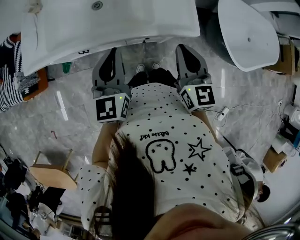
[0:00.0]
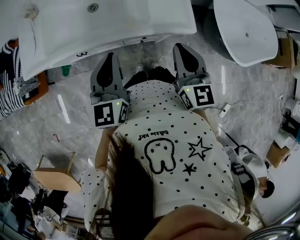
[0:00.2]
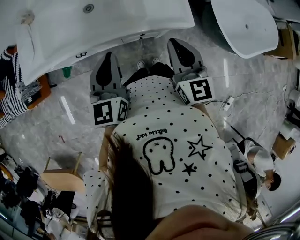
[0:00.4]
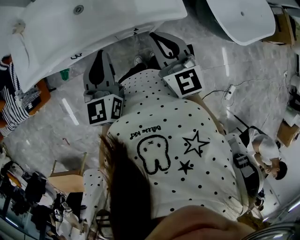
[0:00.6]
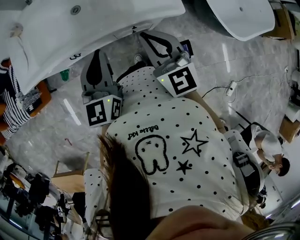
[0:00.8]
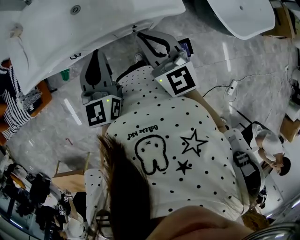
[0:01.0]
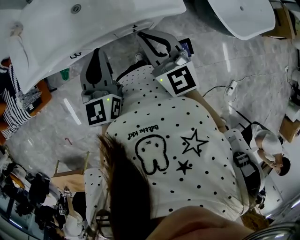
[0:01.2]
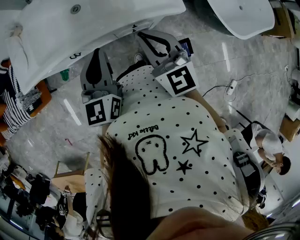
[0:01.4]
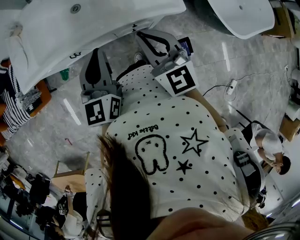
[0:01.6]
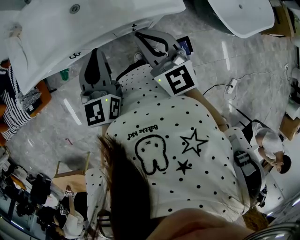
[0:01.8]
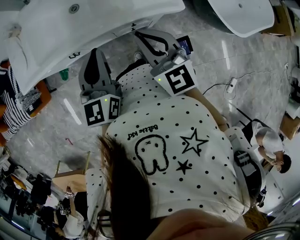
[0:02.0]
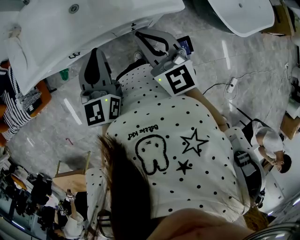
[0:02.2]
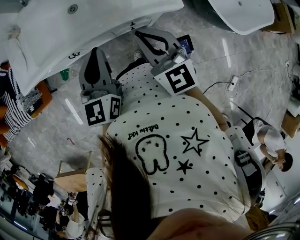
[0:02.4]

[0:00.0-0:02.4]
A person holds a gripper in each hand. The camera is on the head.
0:00.0 to 0:01.2: The right gripper shifts some 5 cm to the left.
0:01.2 to 0:02.4: Neither gripper changes place.

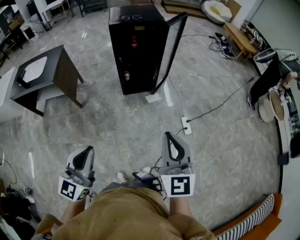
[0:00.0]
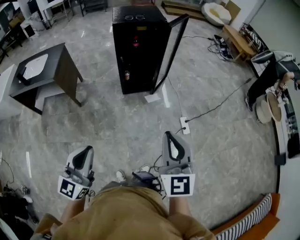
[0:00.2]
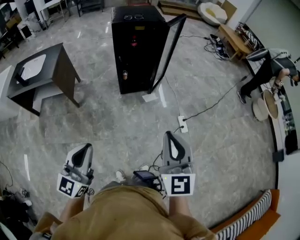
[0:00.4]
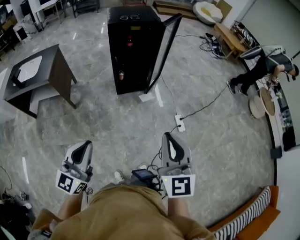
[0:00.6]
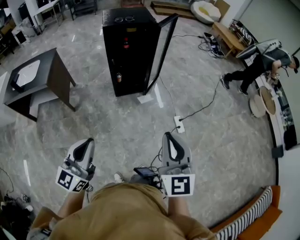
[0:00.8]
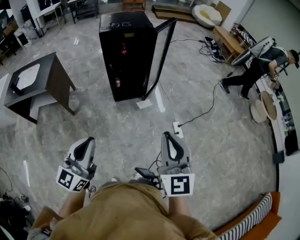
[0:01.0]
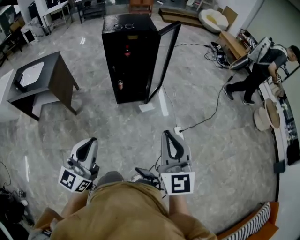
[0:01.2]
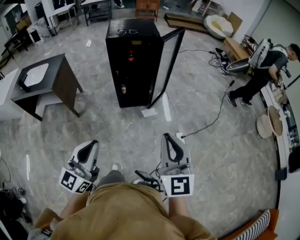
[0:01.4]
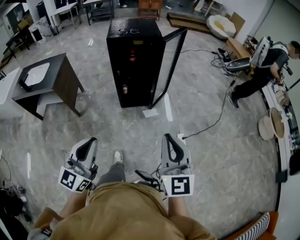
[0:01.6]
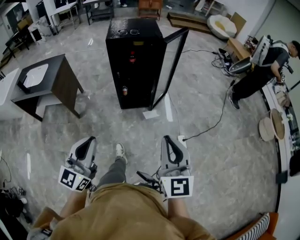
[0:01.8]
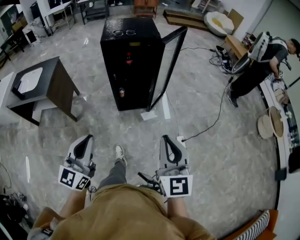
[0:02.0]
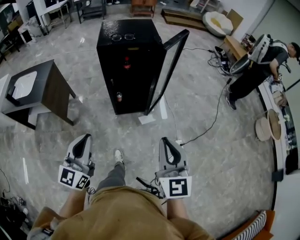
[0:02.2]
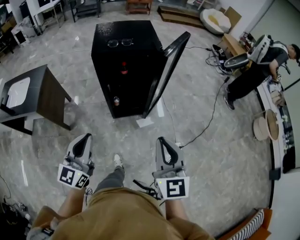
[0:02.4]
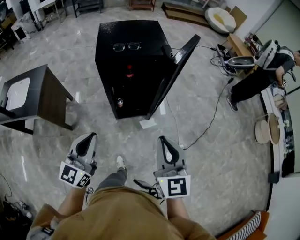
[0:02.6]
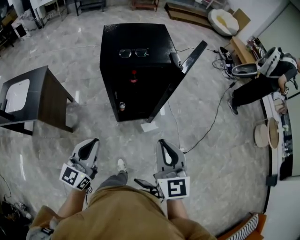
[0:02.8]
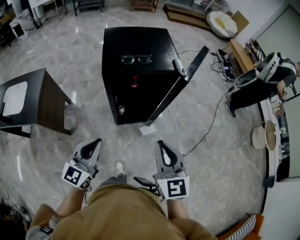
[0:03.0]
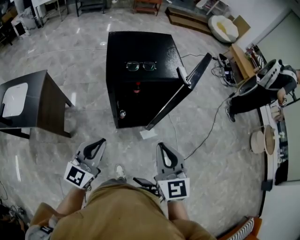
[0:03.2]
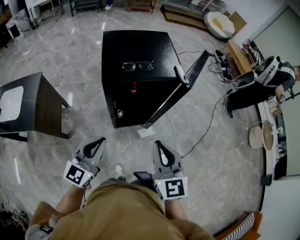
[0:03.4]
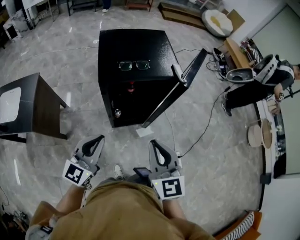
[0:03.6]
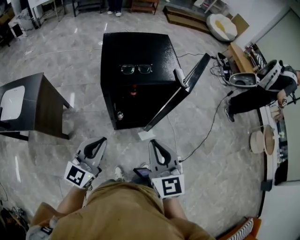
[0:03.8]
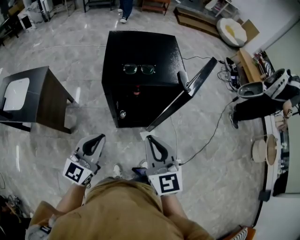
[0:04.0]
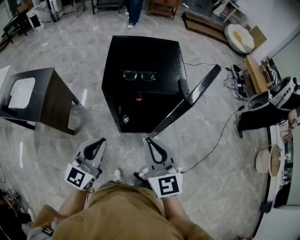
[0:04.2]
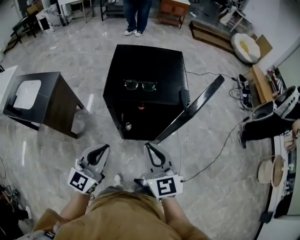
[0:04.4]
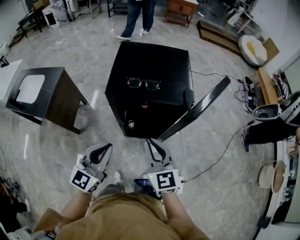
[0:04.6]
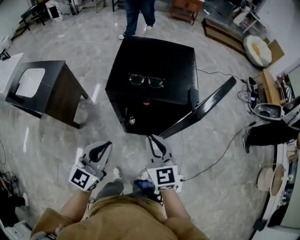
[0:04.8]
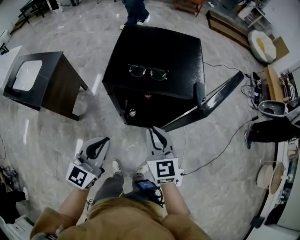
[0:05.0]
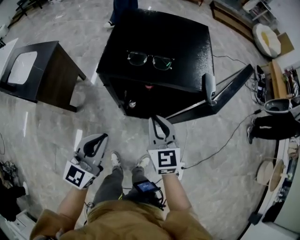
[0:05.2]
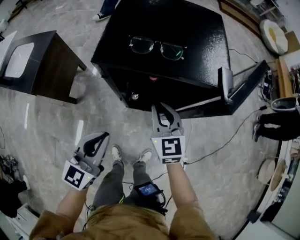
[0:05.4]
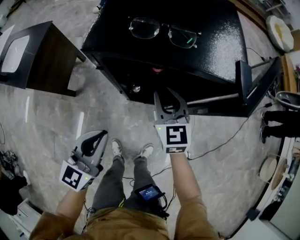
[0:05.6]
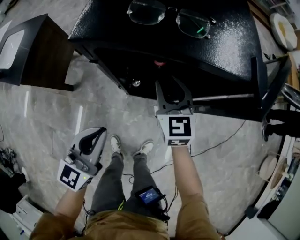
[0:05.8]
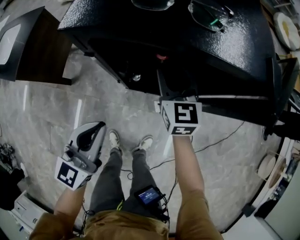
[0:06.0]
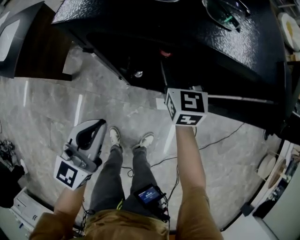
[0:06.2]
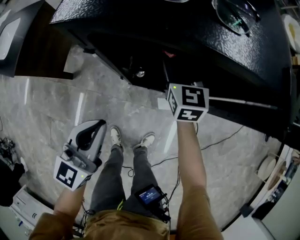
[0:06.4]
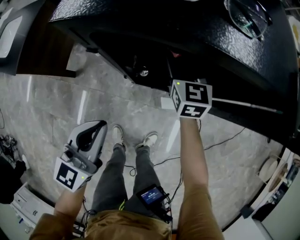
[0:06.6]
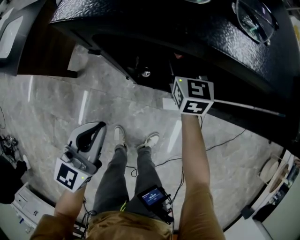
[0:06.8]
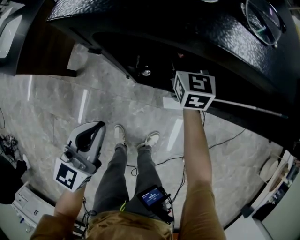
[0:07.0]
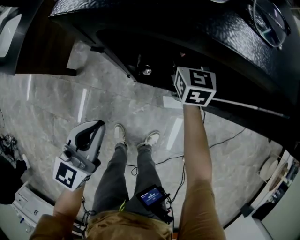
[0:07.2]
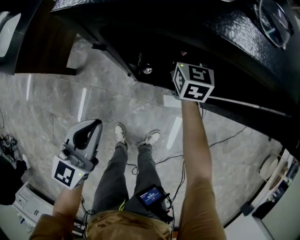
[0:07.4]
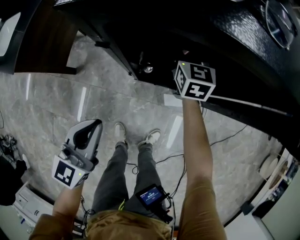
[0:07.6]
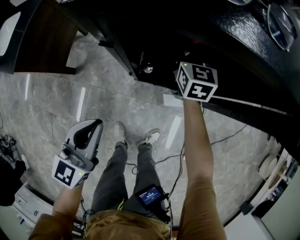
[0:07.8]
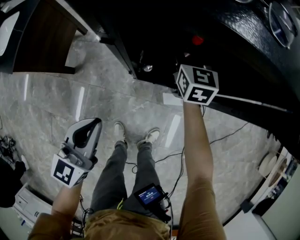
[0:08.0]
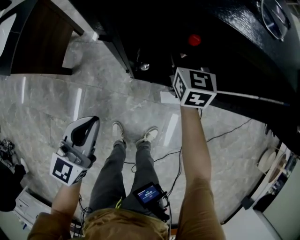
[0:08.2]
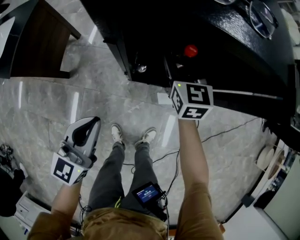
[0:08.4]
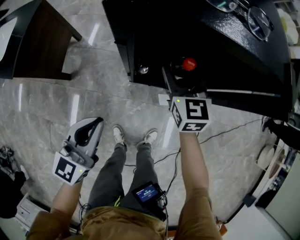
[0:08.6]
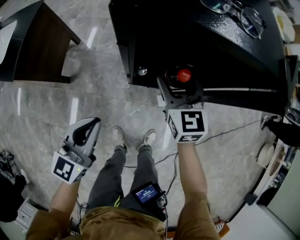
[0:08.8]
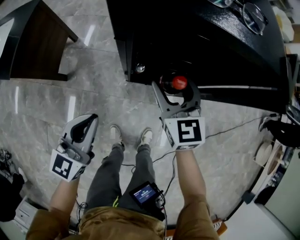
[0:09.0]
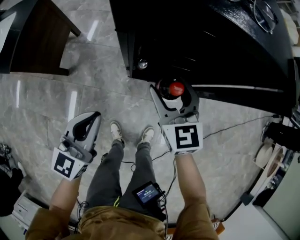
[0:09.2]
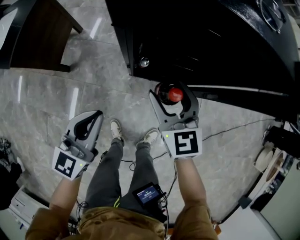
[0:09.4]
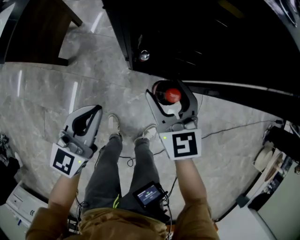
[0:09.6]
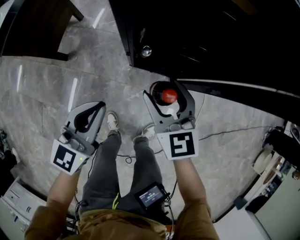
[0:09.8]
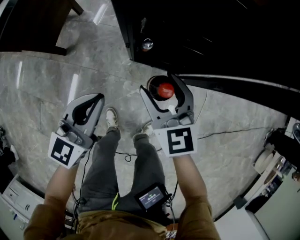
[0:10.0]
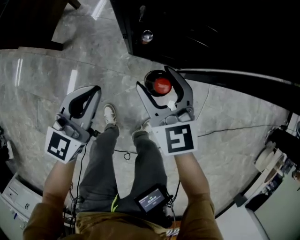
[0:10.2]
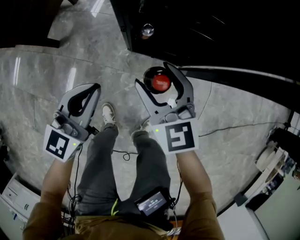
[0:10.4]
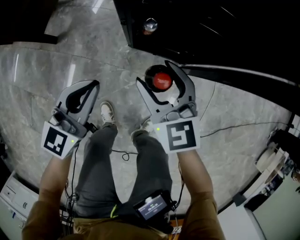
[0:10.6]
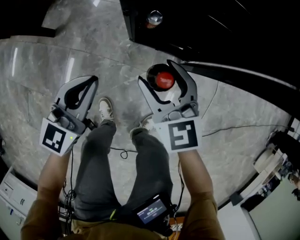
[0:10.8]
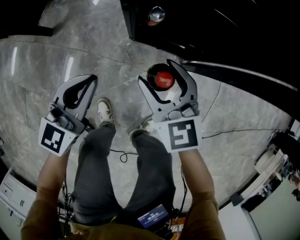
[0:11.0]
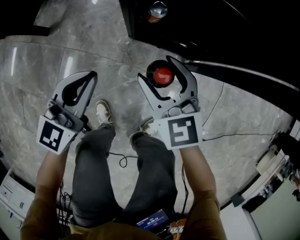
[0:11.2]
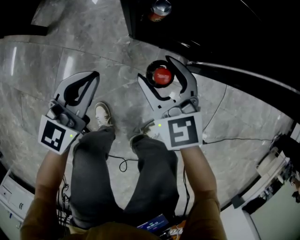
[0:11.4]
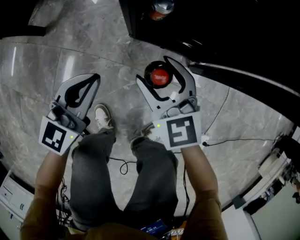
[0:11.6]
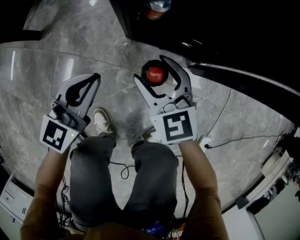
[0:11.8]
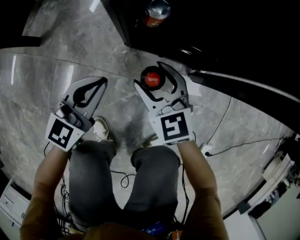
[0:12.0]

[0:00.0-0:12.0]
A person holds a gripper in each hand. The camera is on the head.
0:00.0 to 0:01.6: The two grippers go some 10 cm forward and to the right.
0:01.6 to 0:03.0: The pair of grippers is taken forward and to the left, about 50 cm.
0:03.0 to 0:04.4: The left gripper heads forward and to the right, covering about 10 cm, while the right gripper is displaced forward by approximately 15 cm.
0:04.4 to 0:06.0: The left gripper is displaced downward by approximately 25 cm; the right gripper heads downward and forward, covering approximately 40 cm, and opens its fingers.
0:06.0 to 0:07.6: The left gripper moves to the left and downward, approximately 10 cm. The right gripper shifts about 15 cm forward and downward, and opens.
0:07.6 to 0:09.0: The right gripper heads backward and upward, covering some 20 cm.
0:09.0 to 0:10.4: The two grippers go approximately 20 cm downward.
0:10.4 to 0:12.0: Both grippers move downward, about 35 cm.

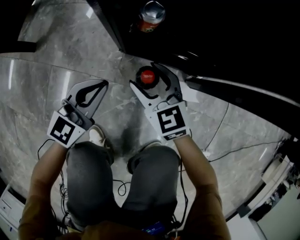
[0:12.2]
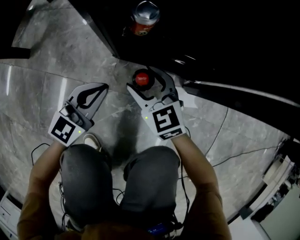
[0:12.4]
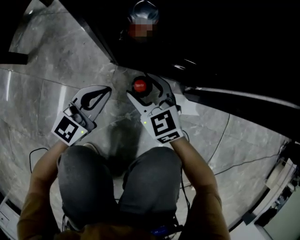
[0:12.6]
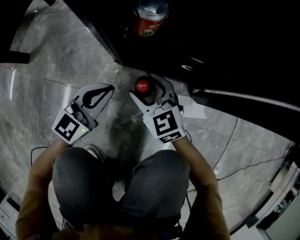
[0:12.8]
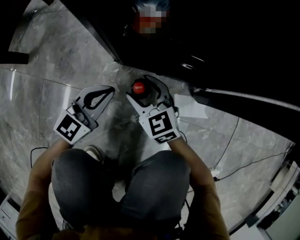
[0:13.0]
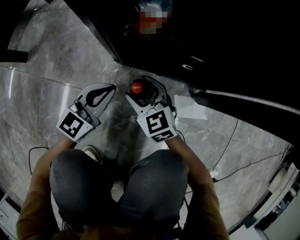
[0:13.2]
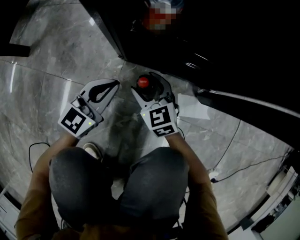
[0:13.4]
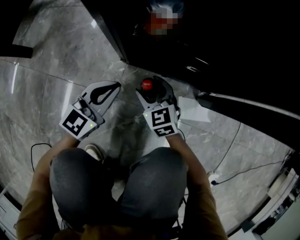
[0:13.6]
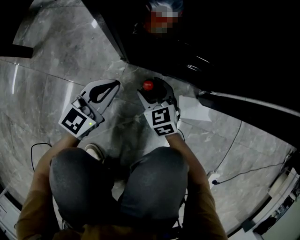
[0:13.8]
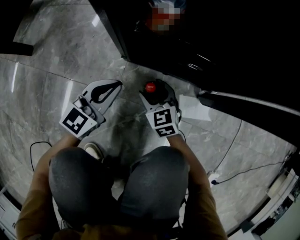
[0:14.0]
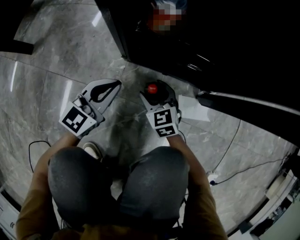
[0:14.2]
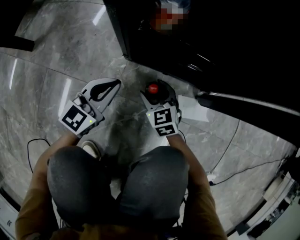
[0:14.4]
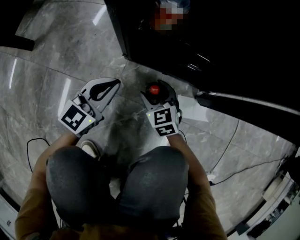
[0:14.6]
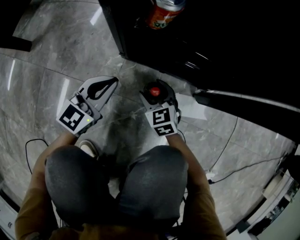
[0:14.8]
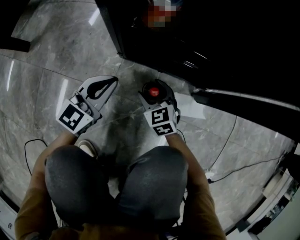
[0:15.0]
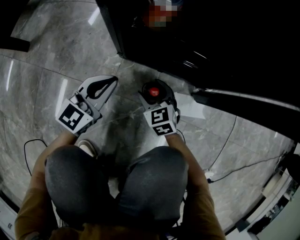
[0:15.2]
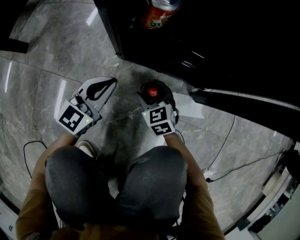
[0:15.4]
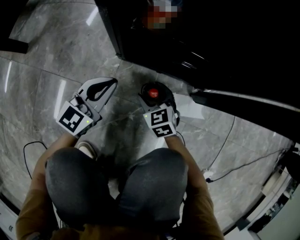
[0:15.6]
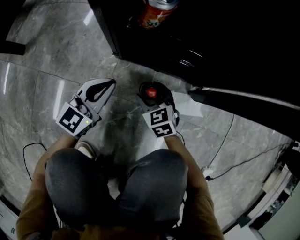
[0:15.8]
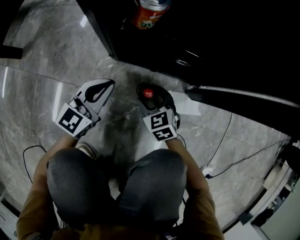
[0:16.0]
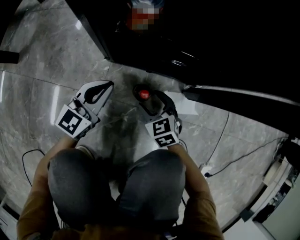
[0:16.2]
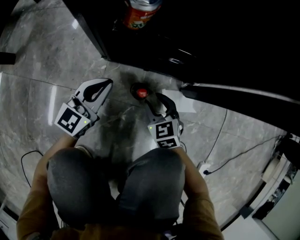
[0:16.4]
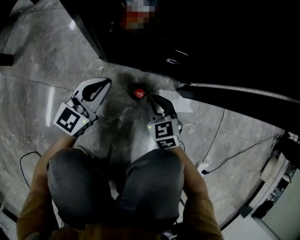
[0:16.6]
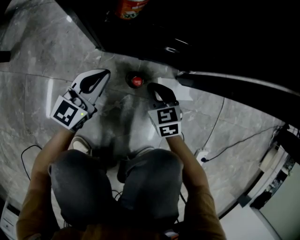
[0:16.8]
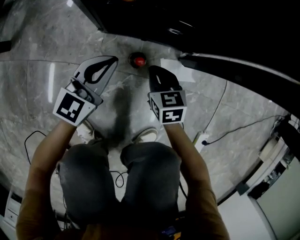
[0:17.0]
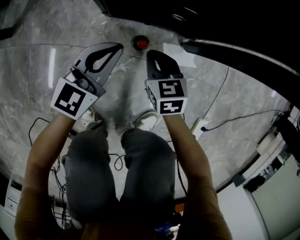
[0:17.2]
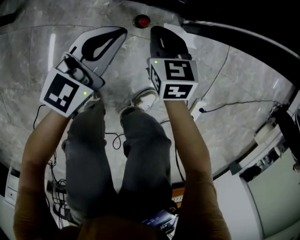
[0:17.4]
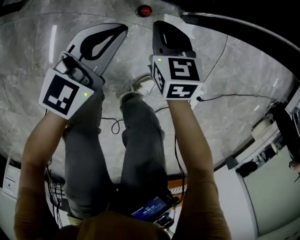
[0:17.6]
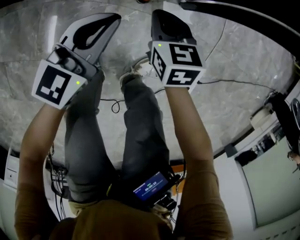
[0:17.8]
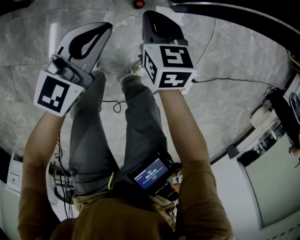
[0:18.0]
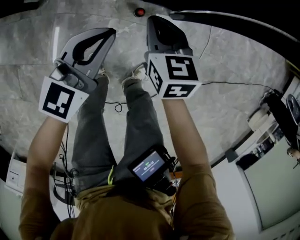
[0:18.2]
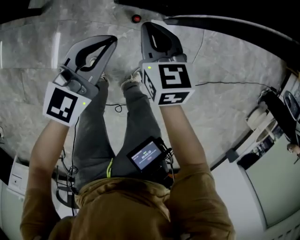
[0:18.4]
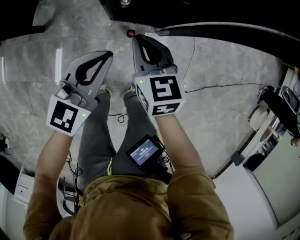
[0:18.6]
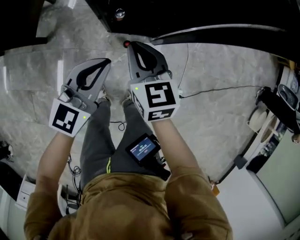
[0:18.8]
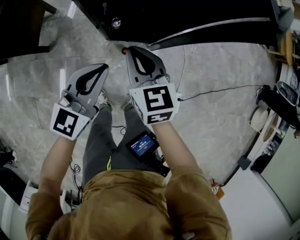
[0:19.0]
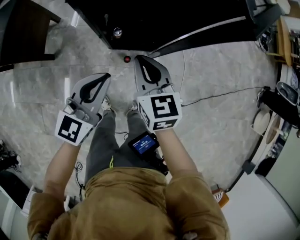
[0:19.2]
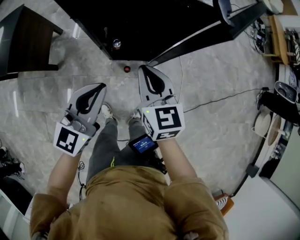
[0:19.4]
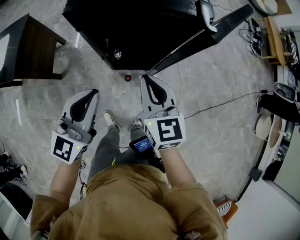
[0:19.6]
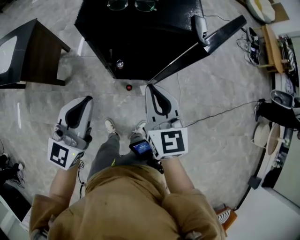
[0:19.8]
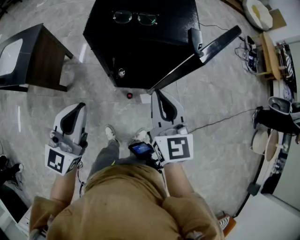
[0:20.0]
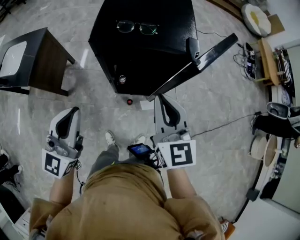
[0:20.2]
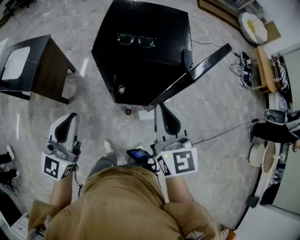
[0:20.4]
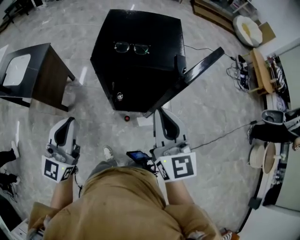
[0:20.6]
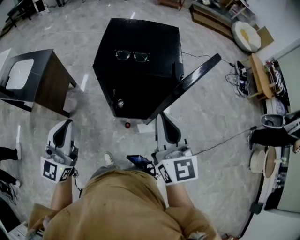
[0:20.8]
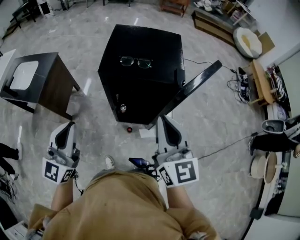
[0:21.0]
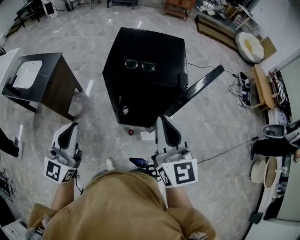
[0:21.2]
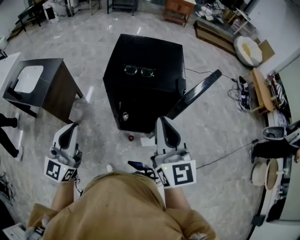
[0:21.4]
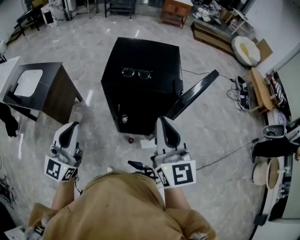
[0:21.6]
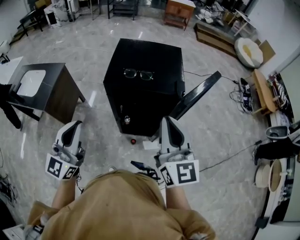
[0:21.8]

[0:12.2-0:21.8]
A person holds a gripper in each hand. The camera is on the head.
0:12.2 to 0:13.8: The left gripper shifts about 15 cm downward. The right gripper moves downward, approximately 25 cm.
0:13.8 to 0:15.4: There are only small adjustments of the grippers.
0:15.4 to 0:17.0: The left gripper travels to the right by approximately 5 cm. Meanwhile the right gripper shifts approximately 10 cm upward and to the right, changes its angle by approximately 30 degrees, and closes its fingers.
0:17.0 to 0:18.6: Both grippers travel together upward, roughly 60 cm.
0:18.6 to 0:20.2: The grippers both shift upward by some 40 cm. The left gripper swivels approximately 20 degrees. Meanwhile the right gripper rotates some 30 degrees.
0:20.2 to 0:21.8: The left gripper heads upward, covering approximately 10 cm. The right gripper goes about 10 cm upward.
